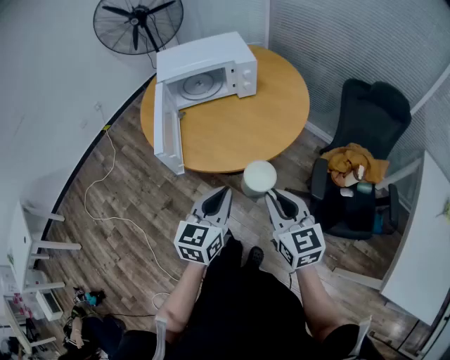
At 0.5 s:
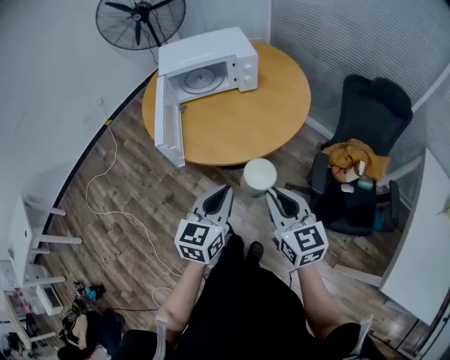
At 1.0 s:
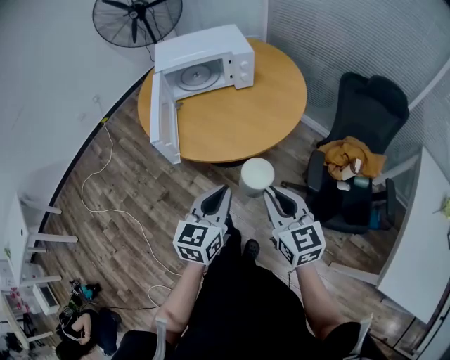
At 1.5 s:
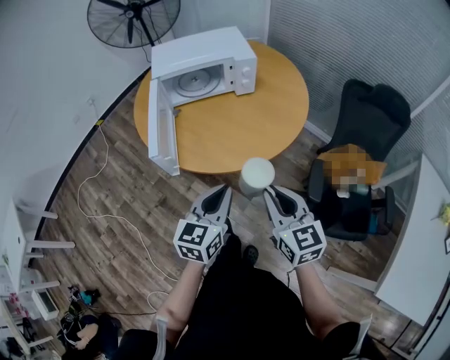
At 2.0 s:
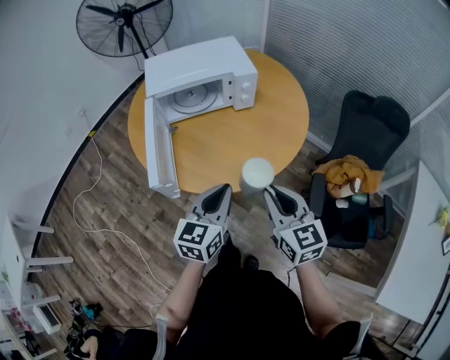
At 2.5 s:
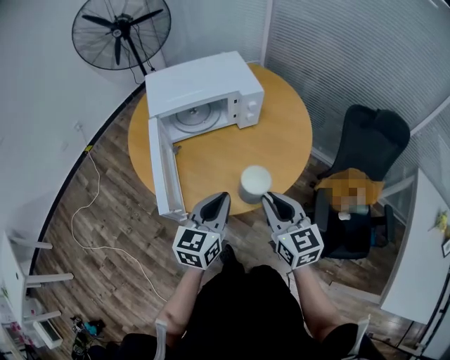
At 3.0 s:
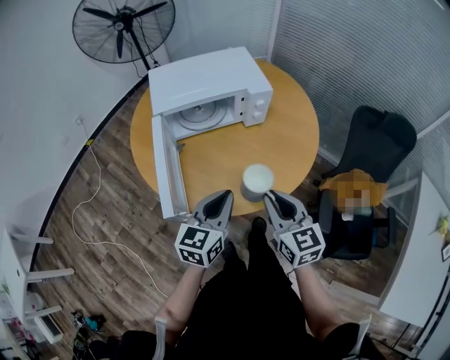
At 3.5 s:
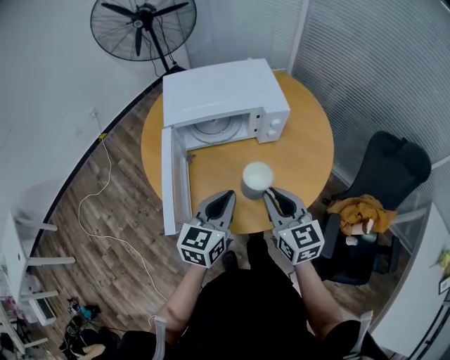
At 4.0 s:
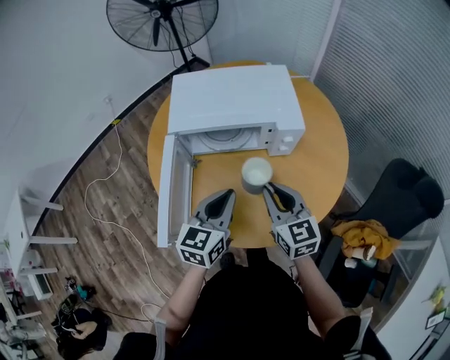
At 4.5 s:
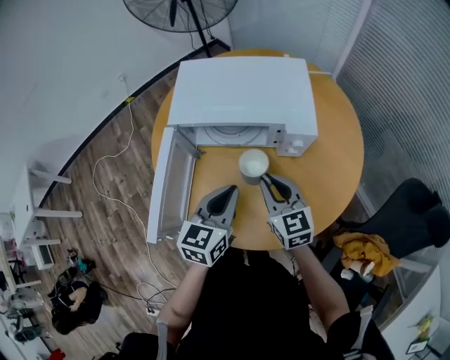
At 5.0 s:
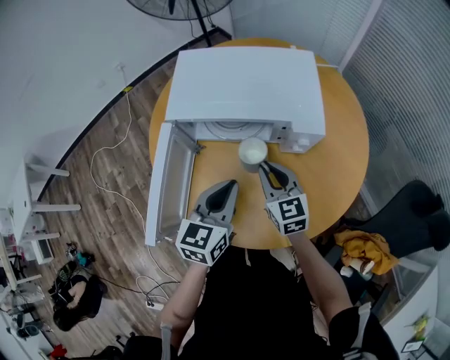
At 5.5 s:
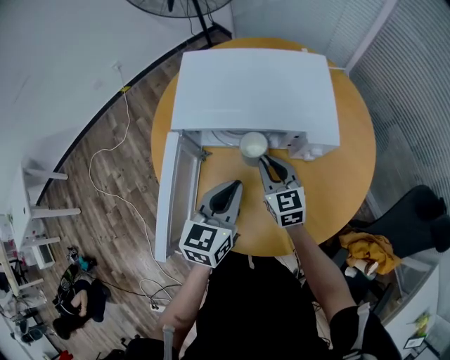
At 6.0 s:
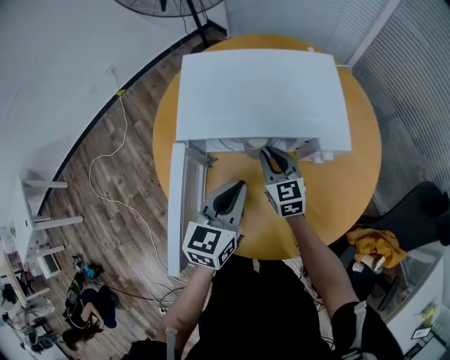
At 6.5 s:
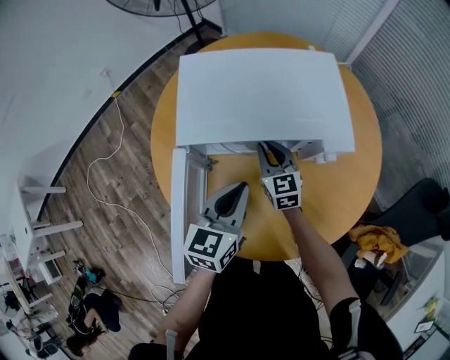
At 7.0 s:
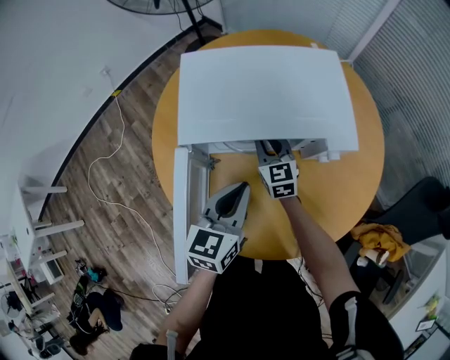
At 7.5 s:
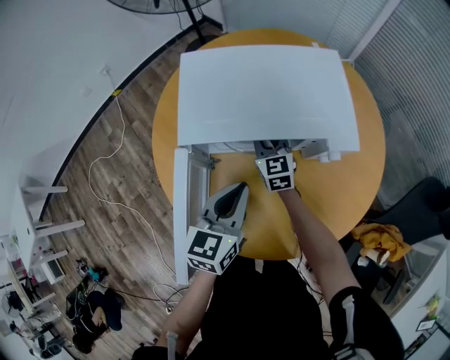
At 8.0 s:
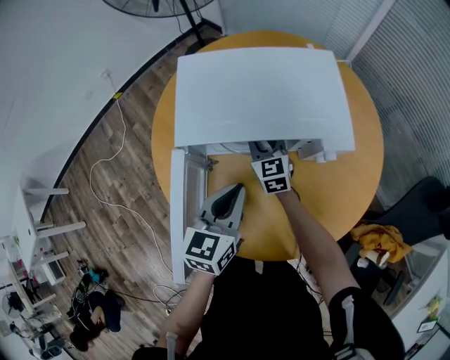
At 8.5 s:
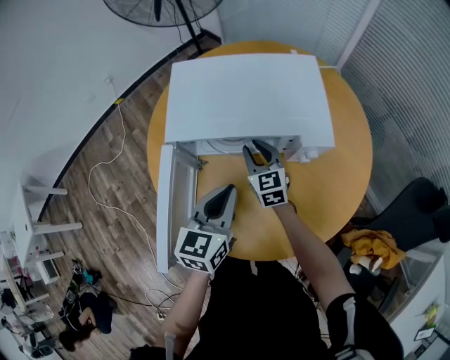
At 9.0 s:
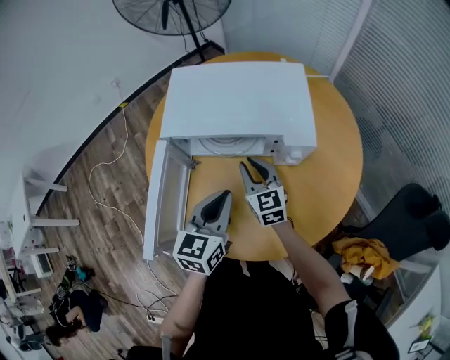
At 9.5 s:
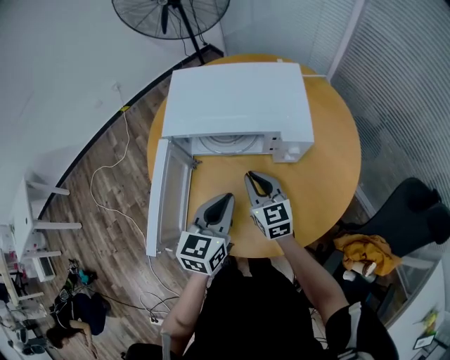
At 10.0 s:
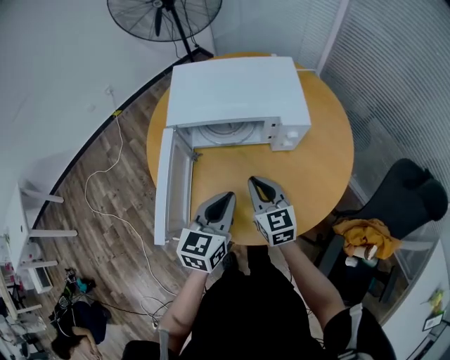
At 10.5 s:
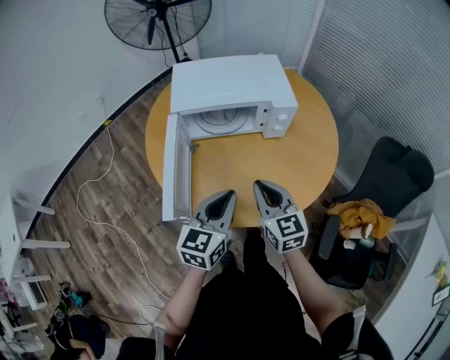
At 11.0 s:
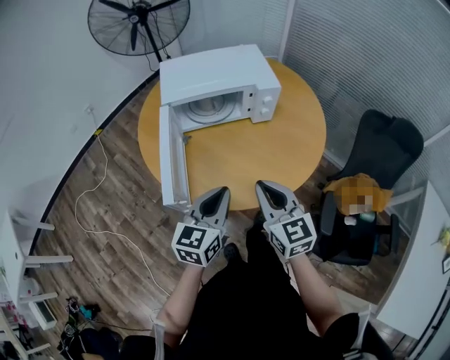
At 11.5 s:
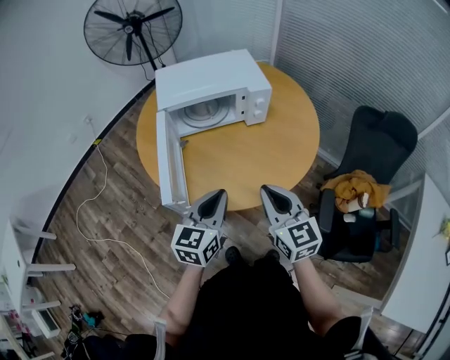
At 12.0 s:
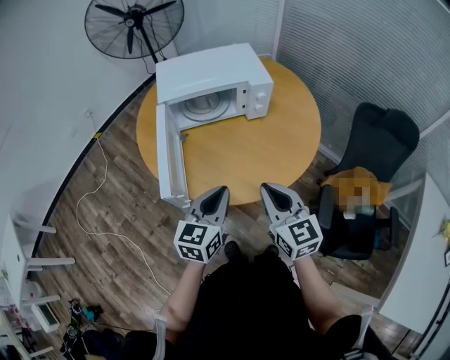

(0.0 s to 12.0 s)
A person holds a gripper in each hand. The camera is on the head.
0.0 s - 2.0 s: The grippers both shift forward by approximately 10 cm.
2.0 s - 4.0 s: Both grippers move forward, roughly 25 cm.
4.0 s - 6.0 s: The left gripper is displaced forward by about 10 cm; the right gripper travels forward and downward by roughly 25 cm.
6.0 s - 8.0 s: The right gripper is displaced forward by some 5 cm.
8.0 s - 10.0 s: The left gripper shifts approximately 10 cm backward, while the right gripper goes roughly 25 cm backward, and closes.
10.0 s - 12.0 s: Both grippers move backward, some 20 cm.

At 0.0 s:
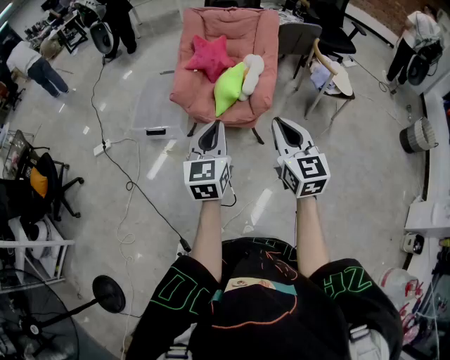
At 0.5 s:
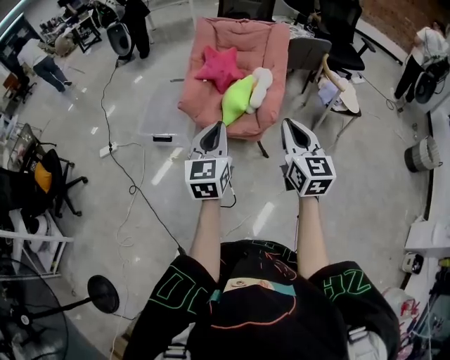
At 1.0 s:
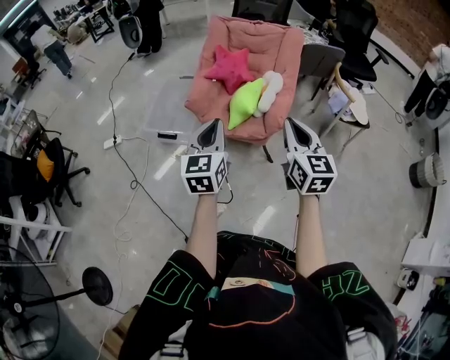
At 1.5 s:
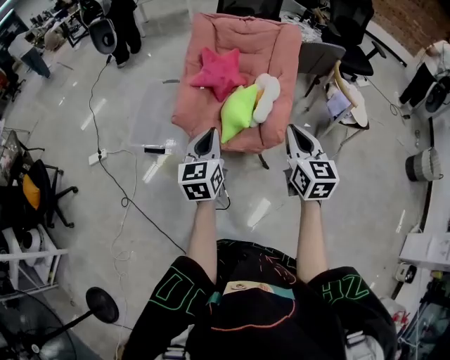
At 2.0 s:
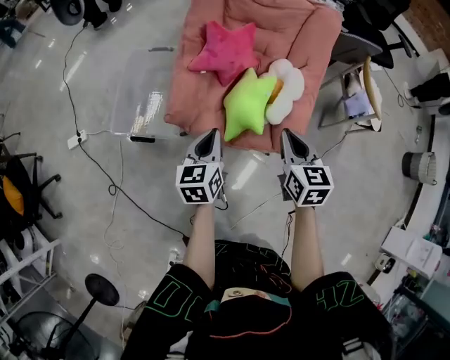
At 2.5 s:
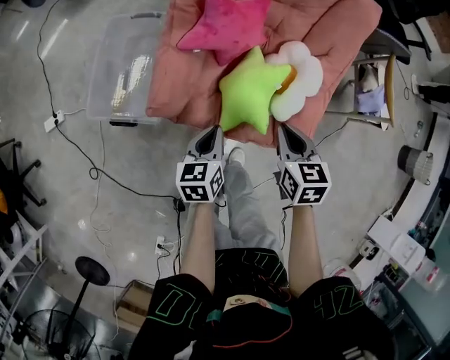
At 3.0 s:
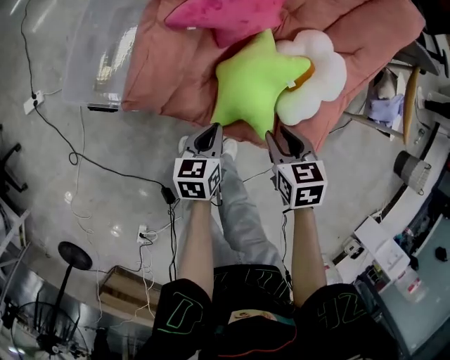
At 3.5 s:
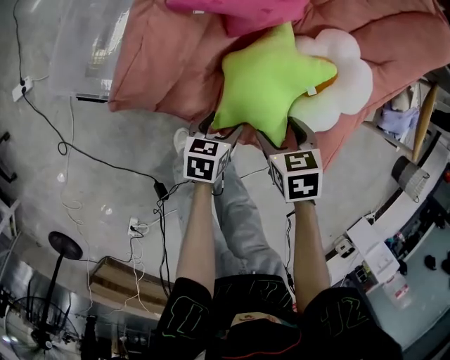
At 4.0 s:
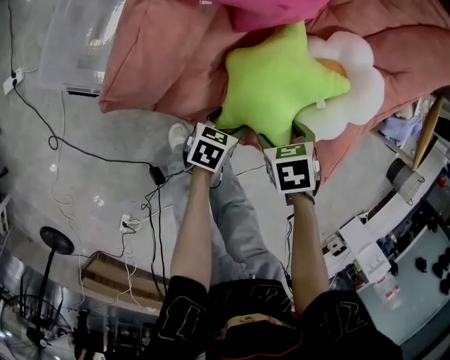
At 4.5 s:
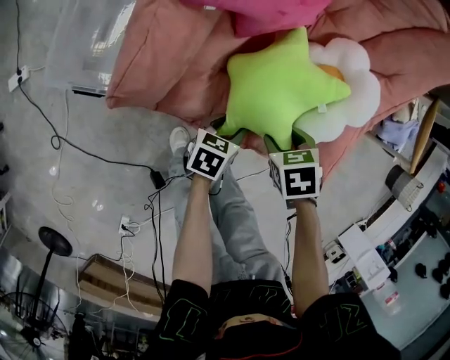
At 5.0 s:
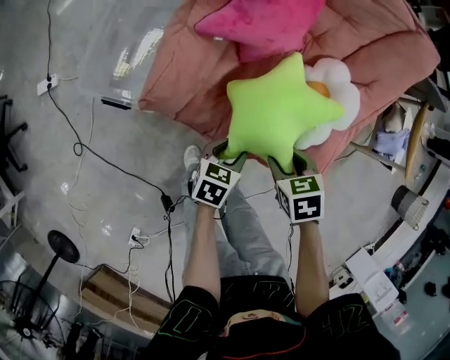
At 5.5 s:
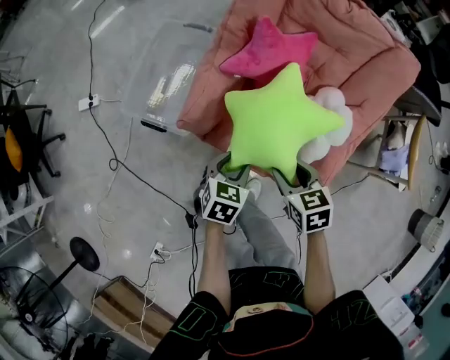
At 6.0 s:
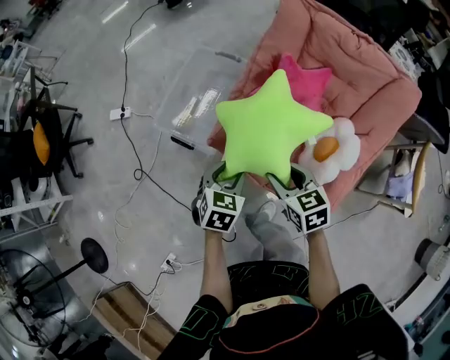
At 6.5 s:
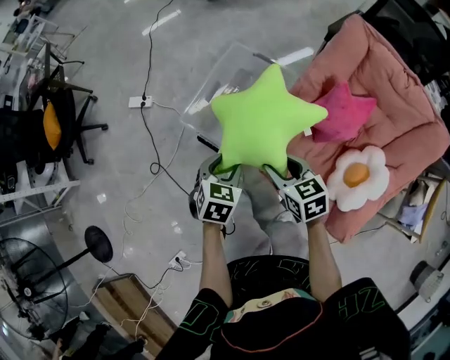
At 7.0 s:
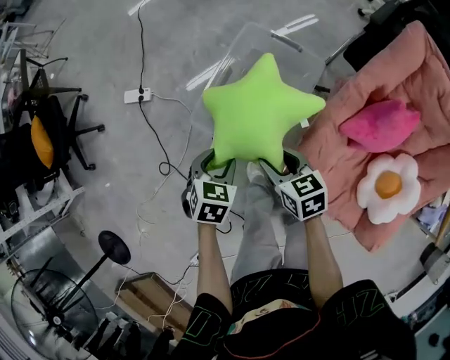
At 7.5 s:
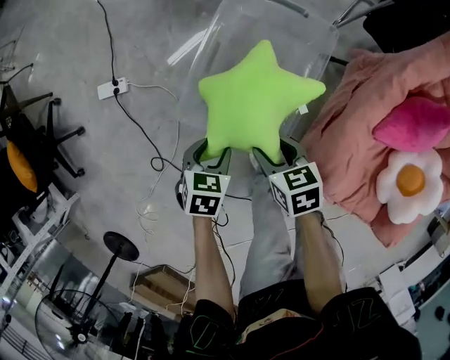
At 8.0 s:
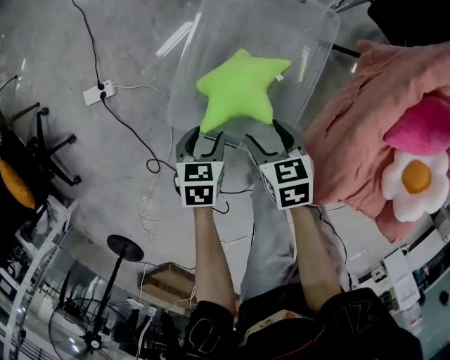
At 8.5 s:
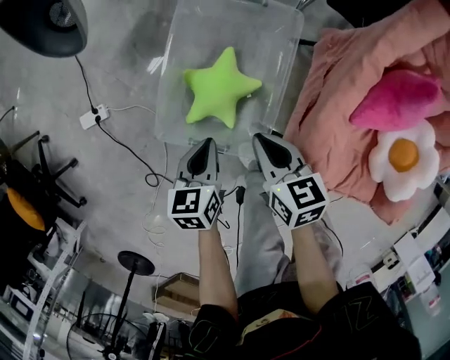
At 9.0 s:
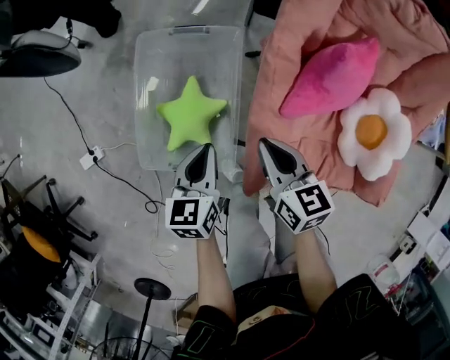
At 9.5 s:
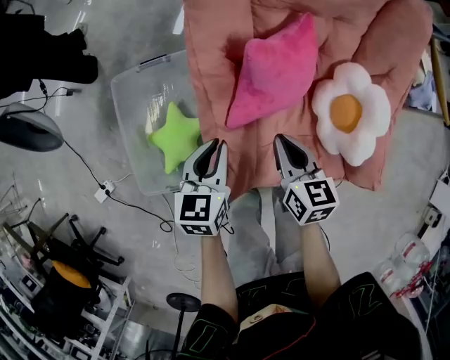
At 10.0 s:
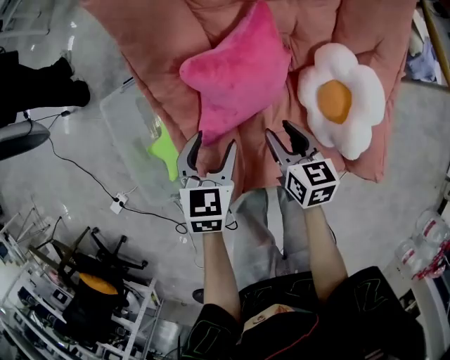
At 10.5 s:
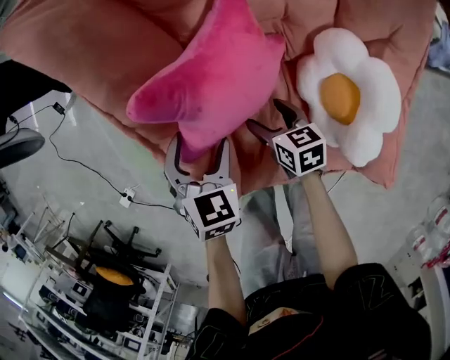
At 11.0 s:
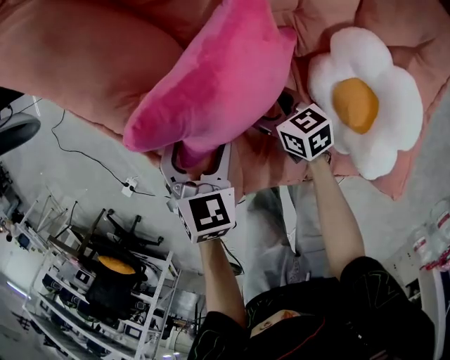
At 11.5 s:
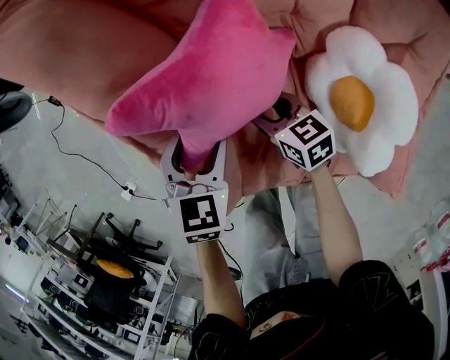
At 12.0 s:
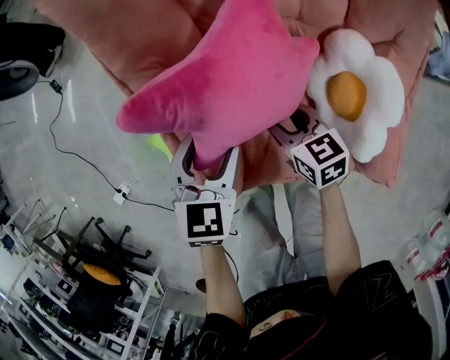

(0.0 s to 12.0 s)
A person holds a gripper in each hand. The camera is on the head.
0.0 s - 2.0 s: The grippers both shift forward and downward by roughly 40 cm. The left gripper rotates some 30 degrees. The right gripper rotates approximately 30 degrees.
2.0 s - 4.0 s: The grippers both shift downward by some 40 cm. The left gripper turns by approximately 40 degrees, and opens; the right gripper tips its fingers downward by about 60 degrees, and opens up.
4.0 s - 6.0 s: Both grippers travel together upward, approximately 30 cm. The left gripper rotates roughly 40 degrees, and closes; the right gripper tips its fingers upward by approximately 50 degrees, and closes up.
6.0 s - 8.0 s: The pair of grippers is taken forward and to the left, some 40 cm. The two grippers go some 30 cm downward. The left gripper swivels some 20 degrees. The right gripper rotates about 20 degrees.
8.0 s - 10.0 s: The pair of grippers is taken about 50 cm. The right gripper turns by some 50 degrees, and closes up; the left gripper rotates some 40 degrees, and closes and opens again.
10.0 s - 12.0 s: The right gripper travels downward and back again, approximately 15 cm each way, and opens, then closes again.

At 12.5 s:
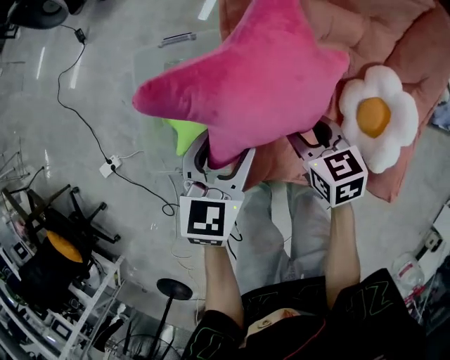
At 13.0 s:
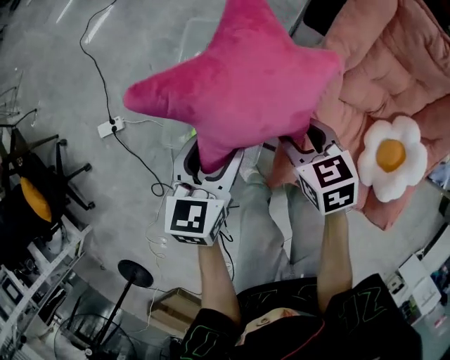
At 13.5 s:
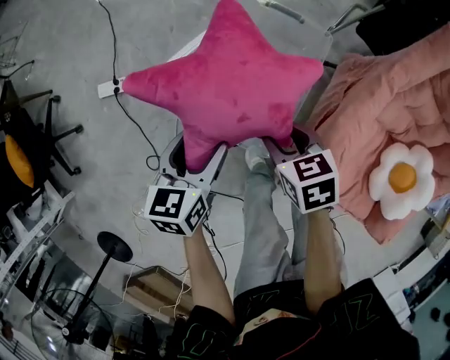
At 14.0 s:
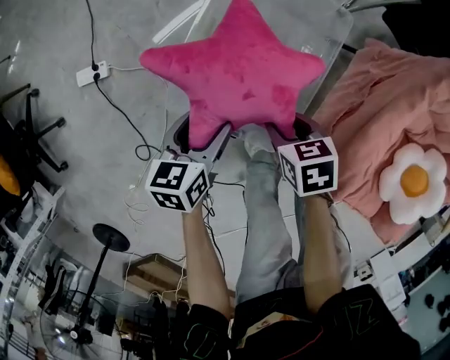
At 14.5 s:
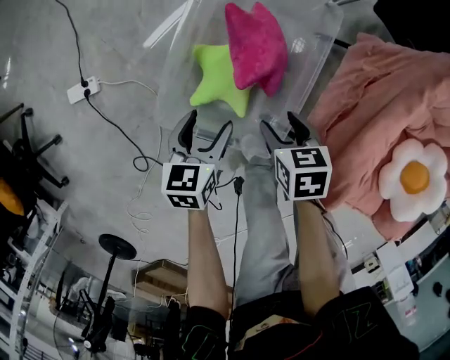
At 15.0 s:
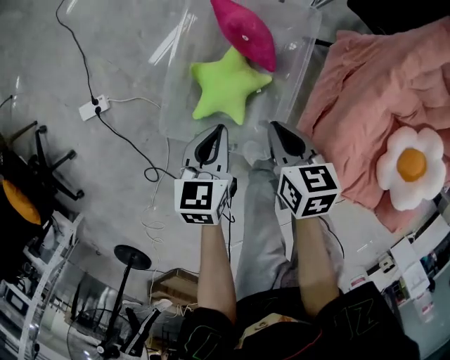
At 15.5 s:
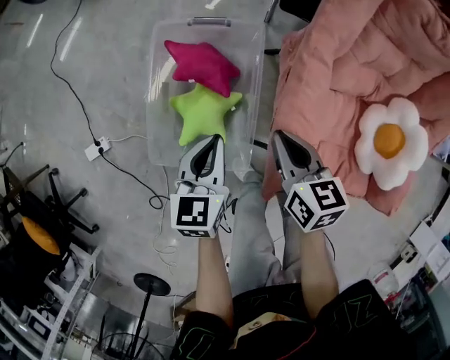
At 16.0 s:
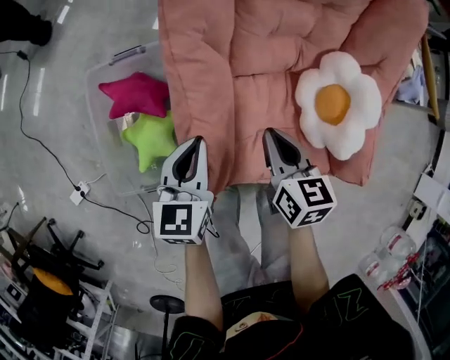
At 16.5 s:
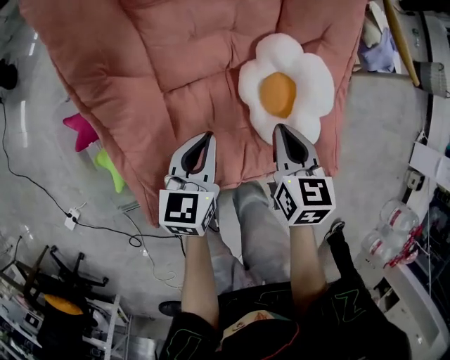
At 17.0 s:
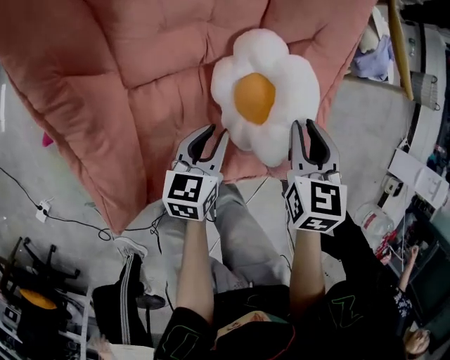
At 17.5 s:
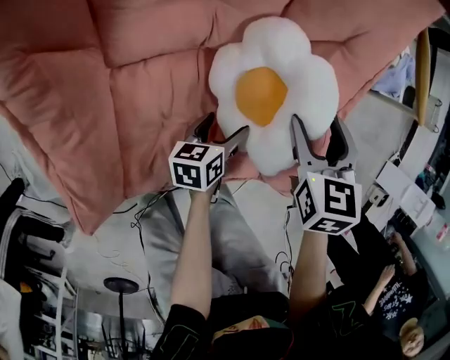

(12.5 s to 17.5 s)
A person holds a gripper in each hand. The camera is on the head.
12.5 s - 15.0 s: The left gripper shifts by about 35 cm, rotates about 30 degrees, and closes. Meanwhile the right gripper shifts by approximately 30 cm, and closes.
15.0 s - 17.5 s: The two grippers travel together, about 70 cm. The left gripper swivels approximately 40 degrees, and opens up; the right gripper swivels about 40 degrees, and opens up.
